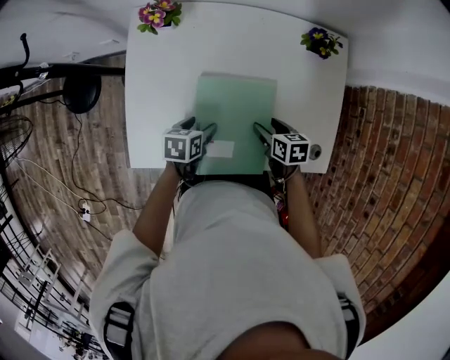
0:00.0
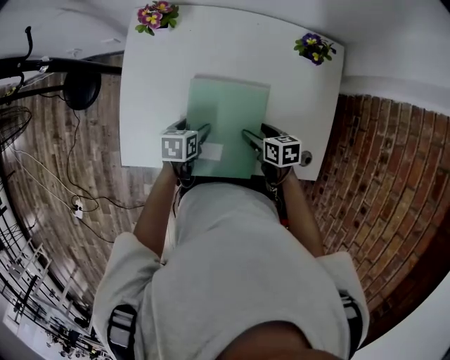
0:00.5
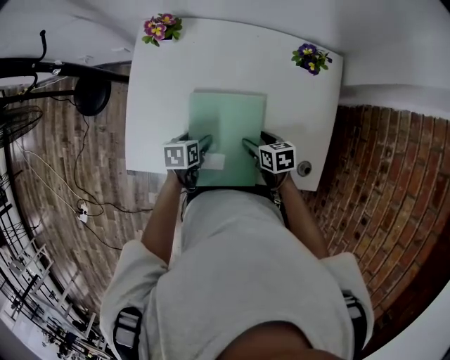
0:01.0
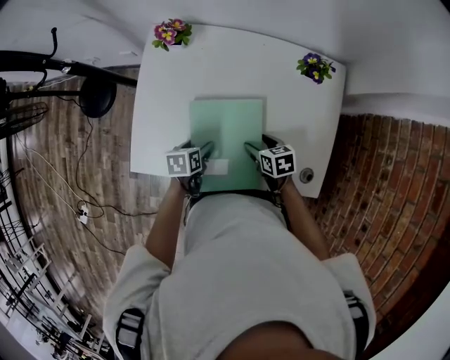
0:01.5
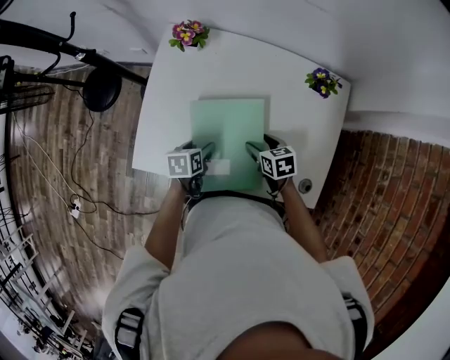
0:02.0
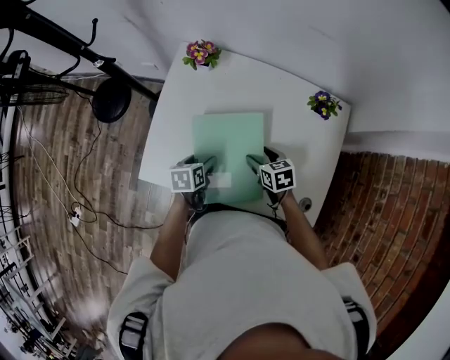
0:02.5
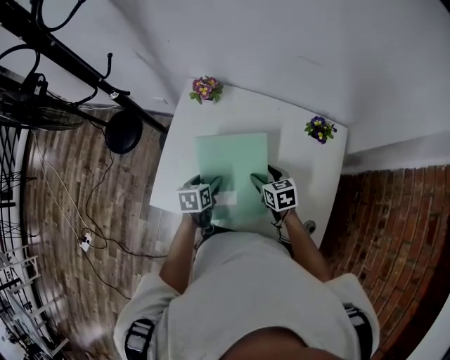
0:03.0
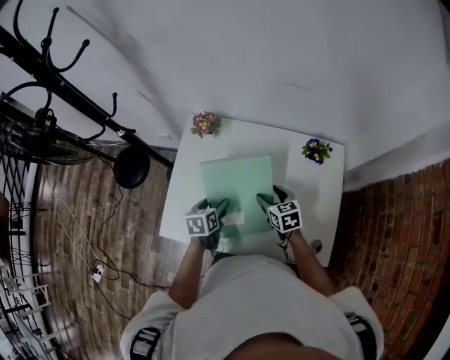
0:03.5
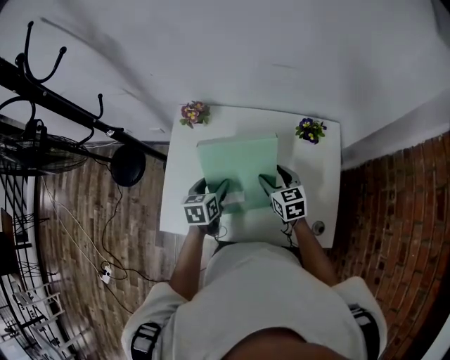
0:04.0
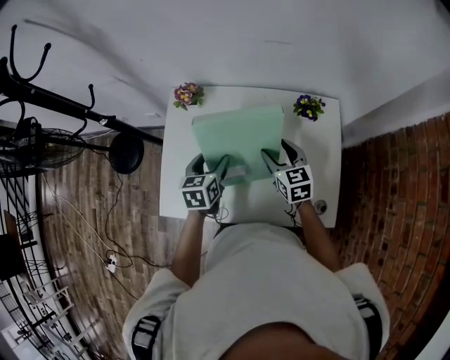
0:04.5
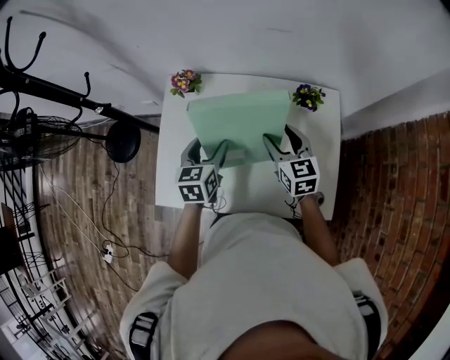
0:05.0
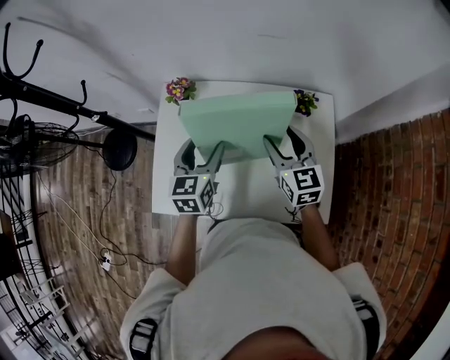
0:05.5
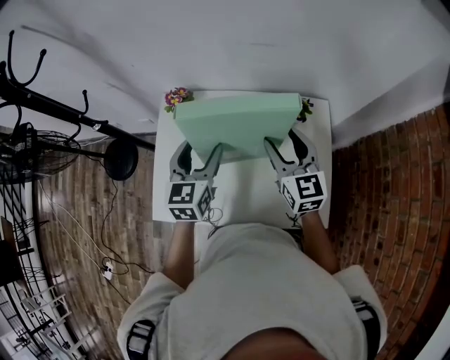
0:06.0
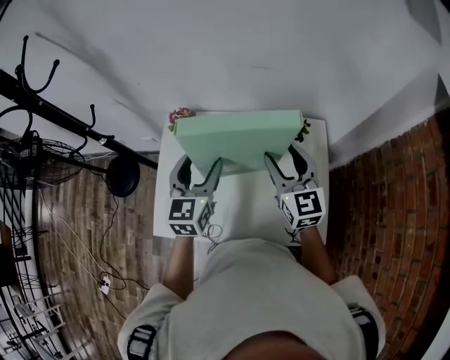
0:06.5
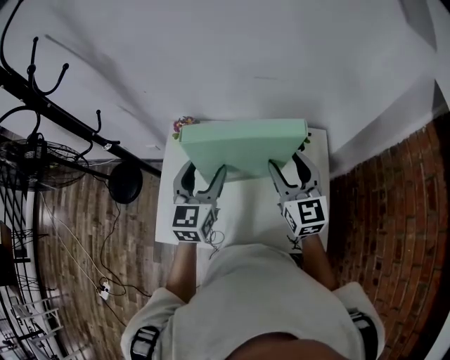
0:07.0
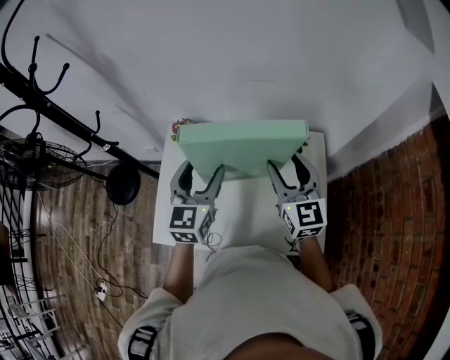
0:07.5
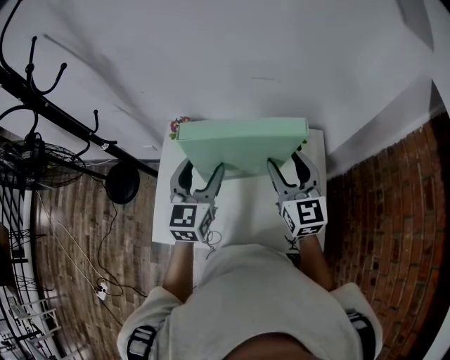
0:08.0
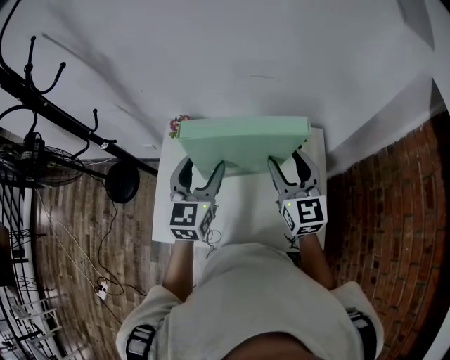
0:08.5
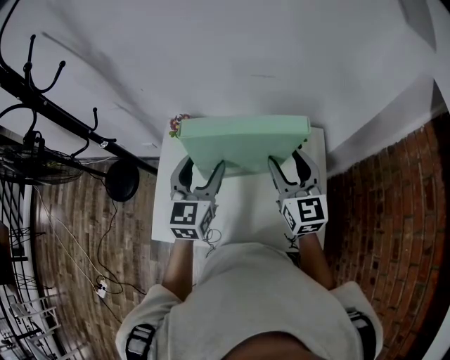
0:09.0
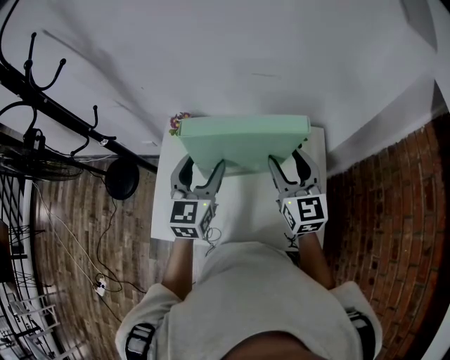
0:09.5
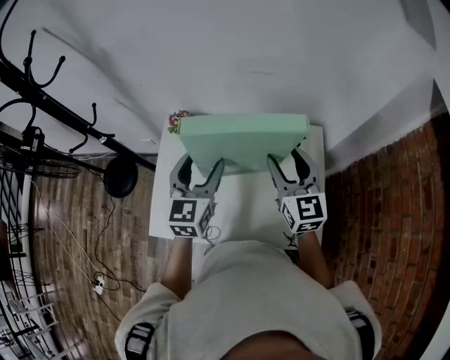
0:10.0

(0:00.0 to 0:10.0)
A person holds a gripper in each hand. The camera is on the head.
0:00.0 - 0:02.0: The right gripper swivels approximately 20 degrees. Meanwhile the left gripper turns by some 20 degrees.
0:02.0 - 0:04.0: The two grippers go about 15 cm upward and forward. The right gripper turns by approximately 30 degrees. Meanwhile the left gripper changes its angle by about 20 degrees.
0:04.0 - 0:06.0: The two grippers go roughly 15 cm upward. The right gripper swivels roughly 30 degrees; the left gripper changes its angle by approximately 30 degrees.
0:06.0 - 0:08.0: The two grippers go roughly 5 cm upward.
0:08.0 - 0:10.0: Both grippers stay put.

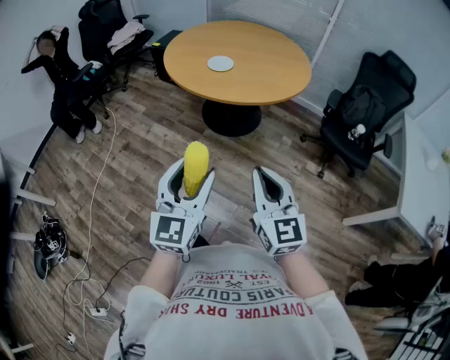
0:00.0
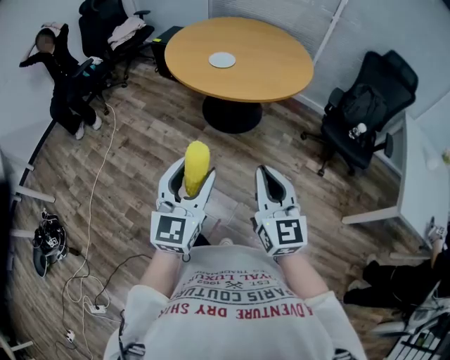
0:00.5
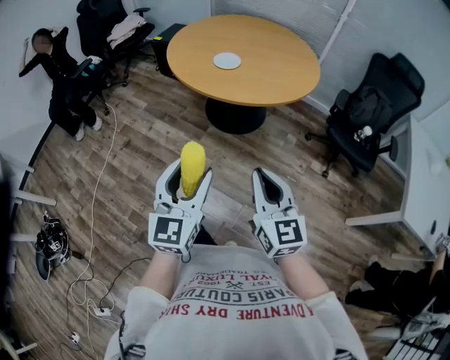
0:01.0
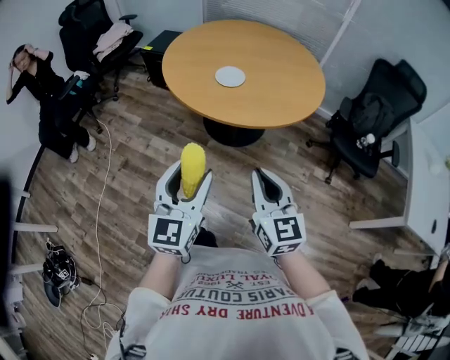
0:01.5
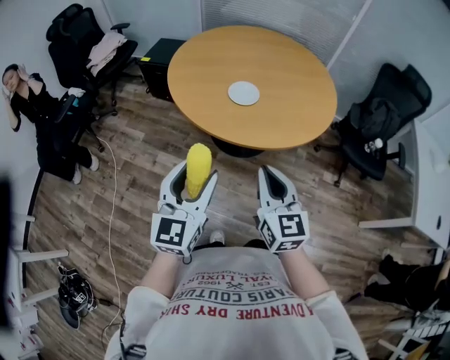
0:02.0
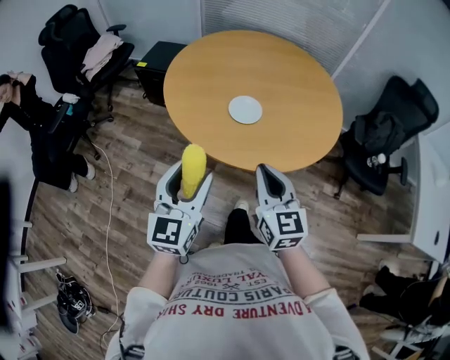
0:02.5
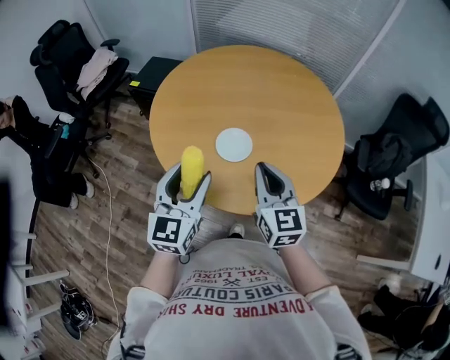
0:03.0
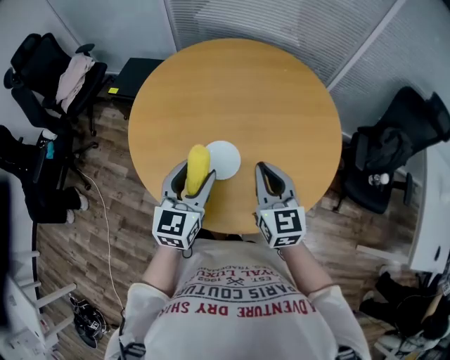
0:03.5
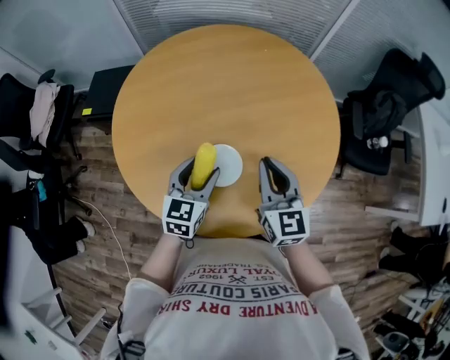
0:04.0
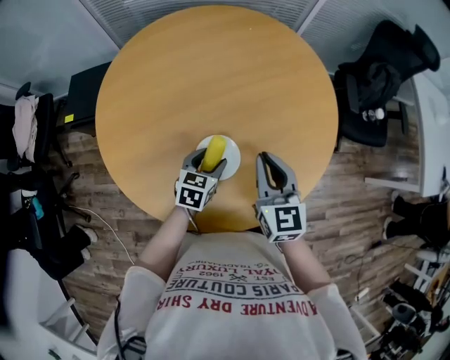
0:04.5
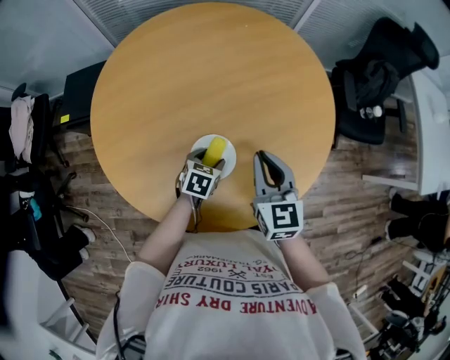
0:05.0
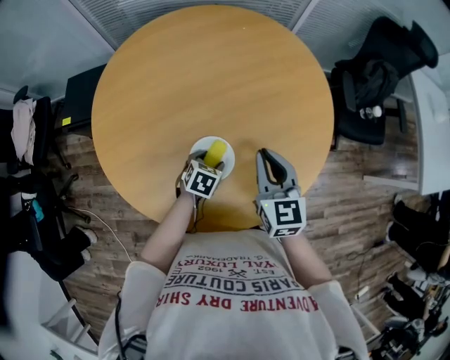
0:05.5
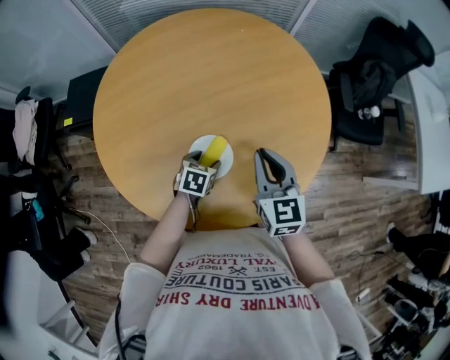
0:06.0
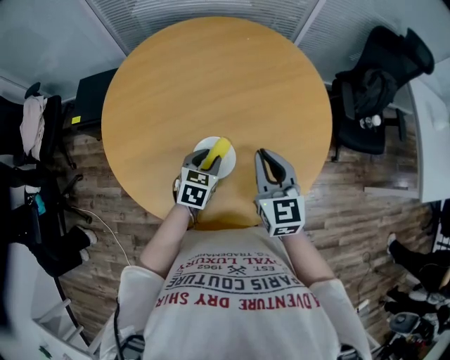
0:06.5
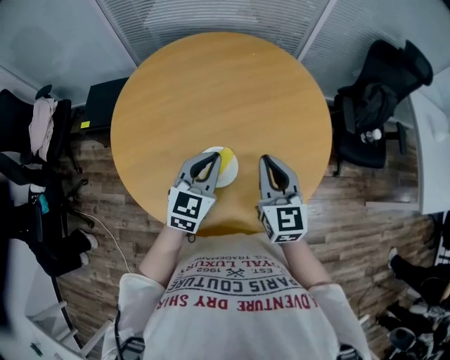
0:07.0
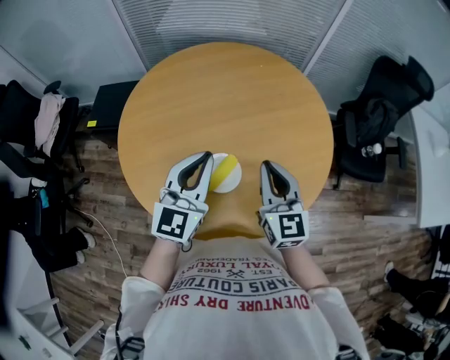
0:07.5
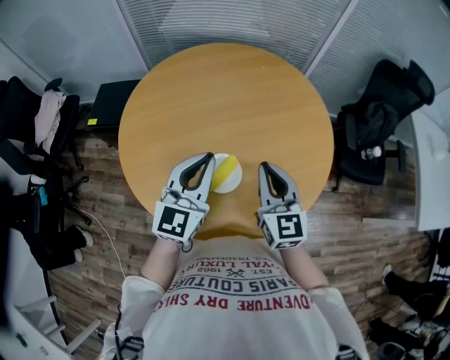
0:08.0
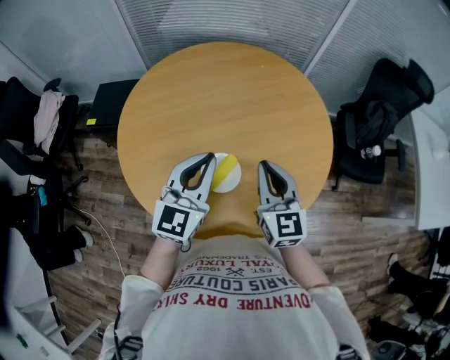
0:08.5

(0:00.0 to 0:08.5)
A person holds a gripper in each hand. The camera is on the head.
0:00.0 - 0:02.0: The two grippers go some 35 cm forward and to the left.
0:02.0 - 0:04.0: The pair of grippers is taken forward, approximately 40 cm. The left gripper rotates roughly 30 degrees.
0:04.0 - 0:06.5: The left gripper is displaced downward by some 10 cm, and swivels about 20 degrees.
0:06.5 - 0:08.5: The right gripper goes approximately 5 cm upward. The left gripper travels upward by approximately 25 cm, tips its fingers upward by about 40 degrees, and closes its fingers.

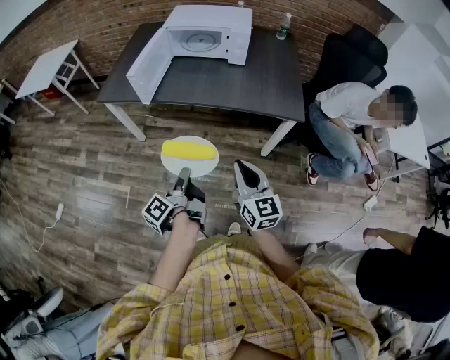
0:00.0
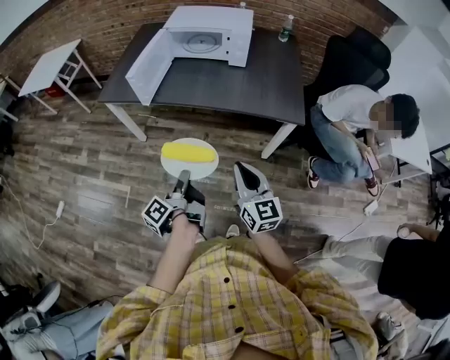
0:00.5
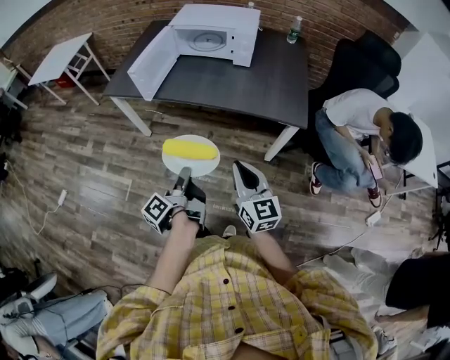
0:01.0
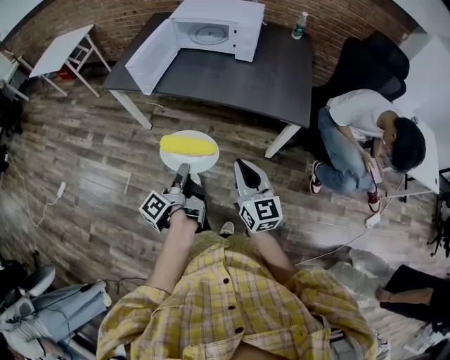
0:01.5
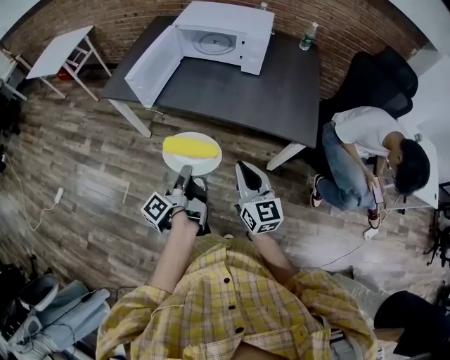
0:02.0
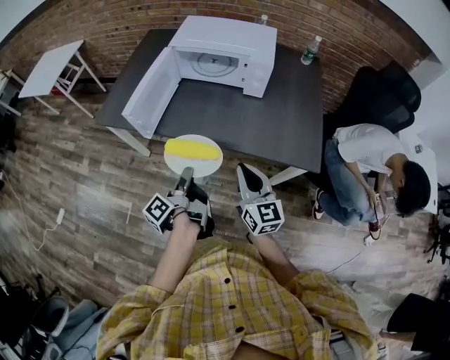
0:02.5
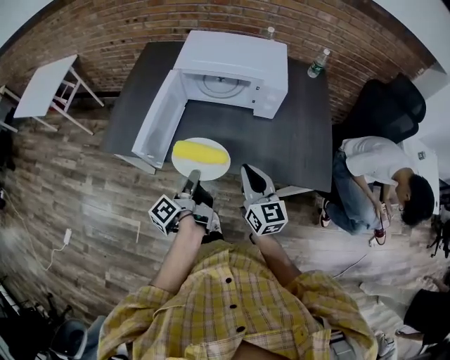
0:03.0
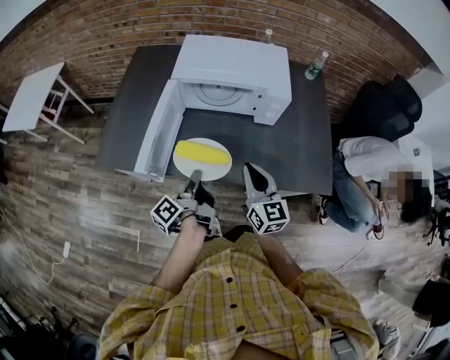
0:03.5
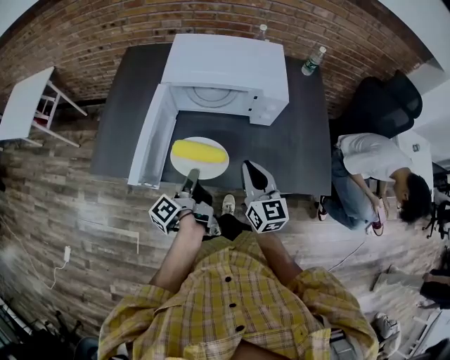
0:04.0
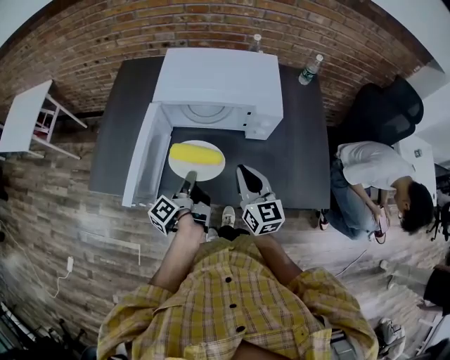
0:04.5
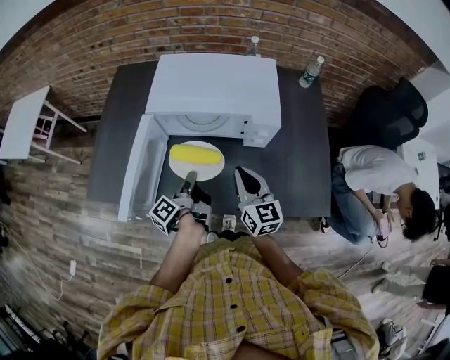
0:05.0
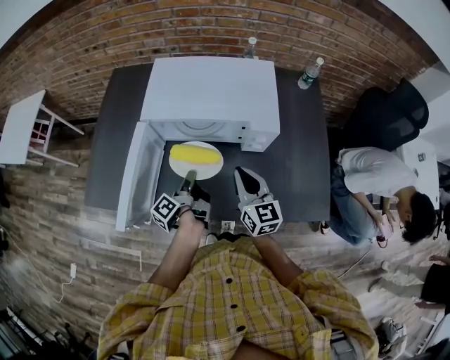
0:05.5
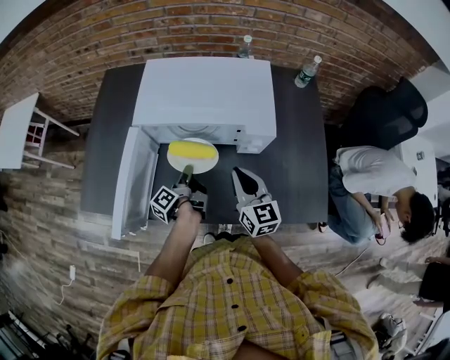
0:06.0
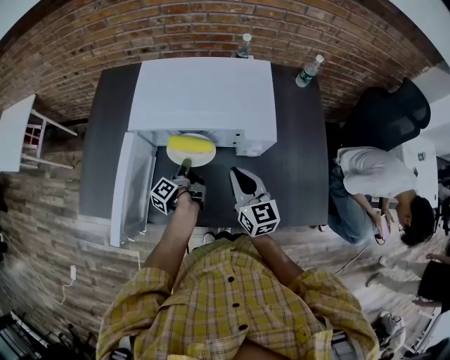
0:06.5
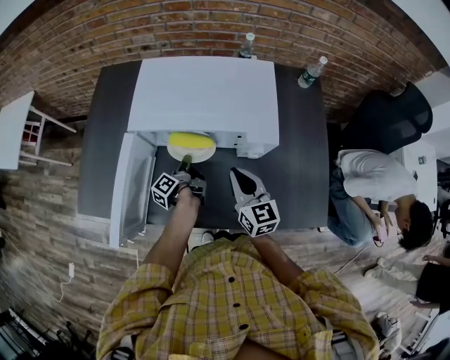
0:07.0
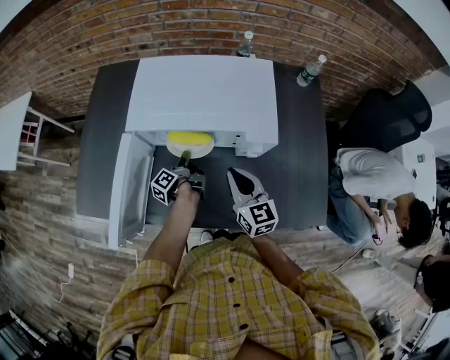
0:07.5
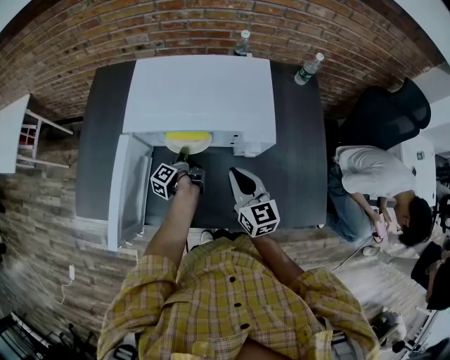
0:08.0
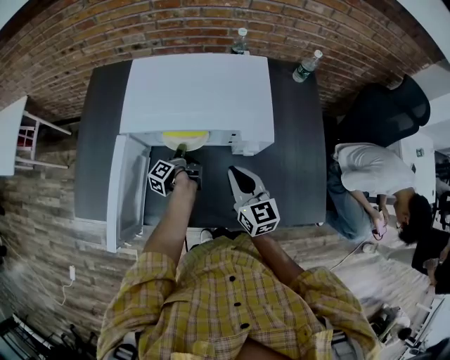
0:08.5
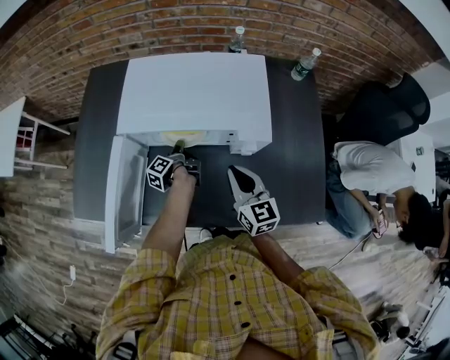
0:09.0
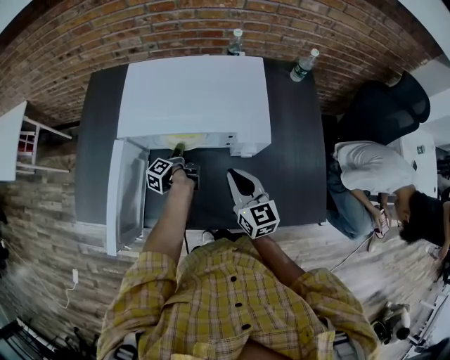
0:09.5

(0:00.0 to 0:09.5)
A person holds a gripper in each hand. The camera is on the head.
0:00.0 - 0:02.0: The right gripper shifts by approximately 10 cm.
0:02.0 - 0:04.0: The right gripper shifts by some 35 cm.
0:04.0 - 0:05.5: The right gripper ends up about 10 cm from where it was.
